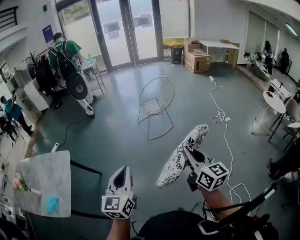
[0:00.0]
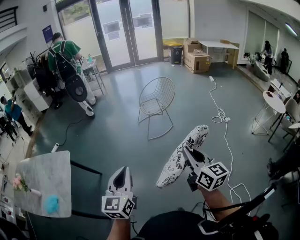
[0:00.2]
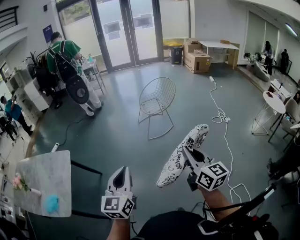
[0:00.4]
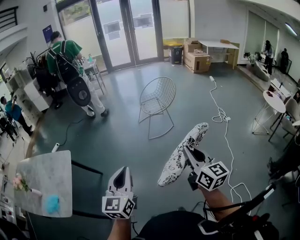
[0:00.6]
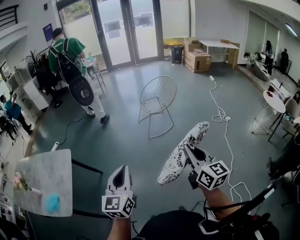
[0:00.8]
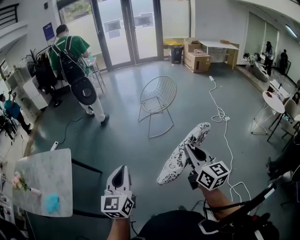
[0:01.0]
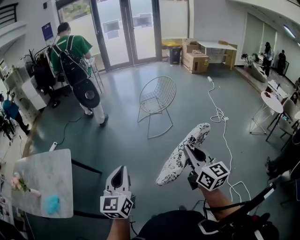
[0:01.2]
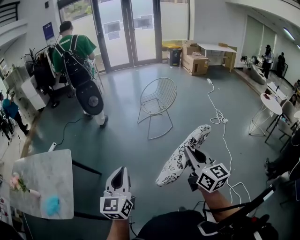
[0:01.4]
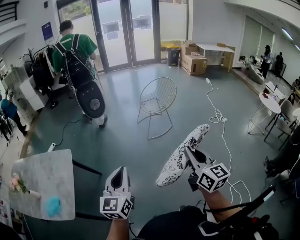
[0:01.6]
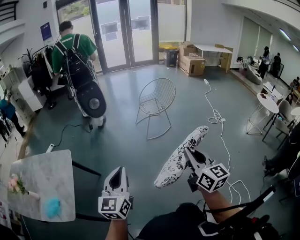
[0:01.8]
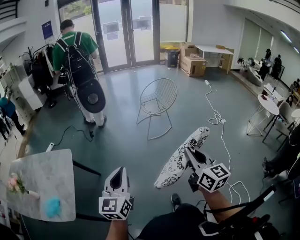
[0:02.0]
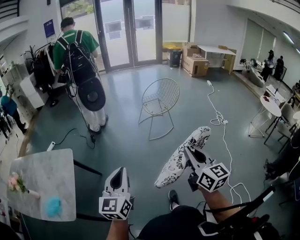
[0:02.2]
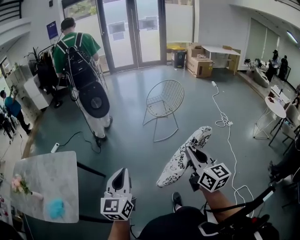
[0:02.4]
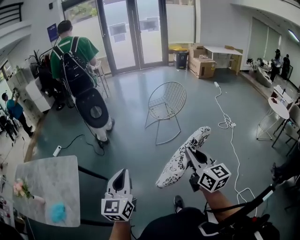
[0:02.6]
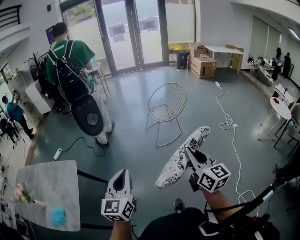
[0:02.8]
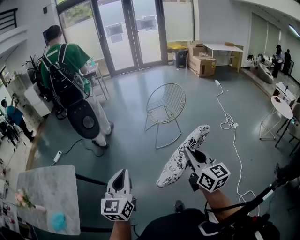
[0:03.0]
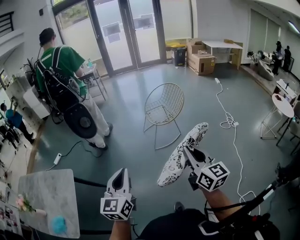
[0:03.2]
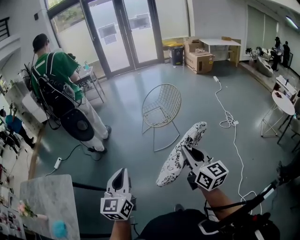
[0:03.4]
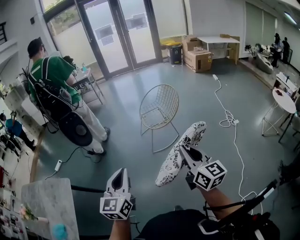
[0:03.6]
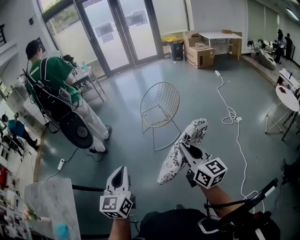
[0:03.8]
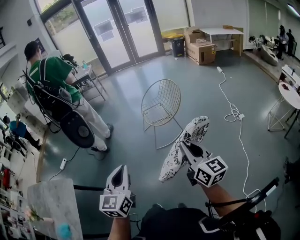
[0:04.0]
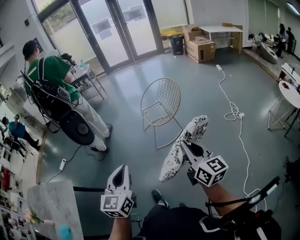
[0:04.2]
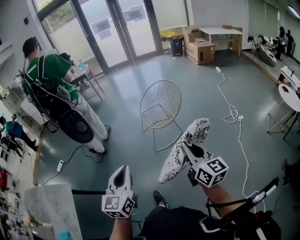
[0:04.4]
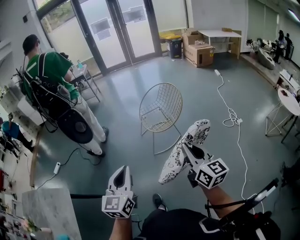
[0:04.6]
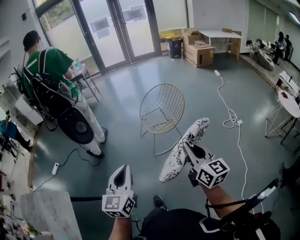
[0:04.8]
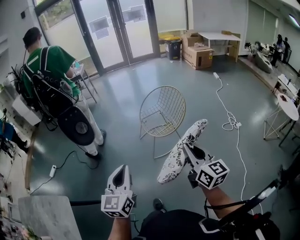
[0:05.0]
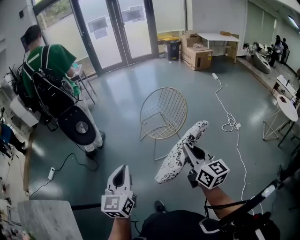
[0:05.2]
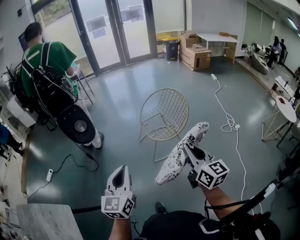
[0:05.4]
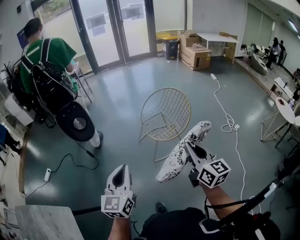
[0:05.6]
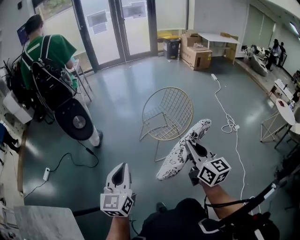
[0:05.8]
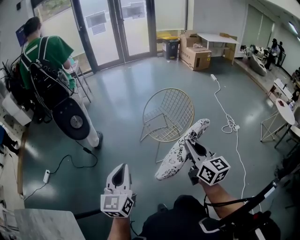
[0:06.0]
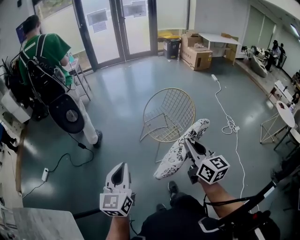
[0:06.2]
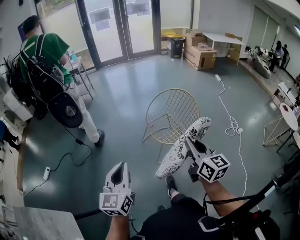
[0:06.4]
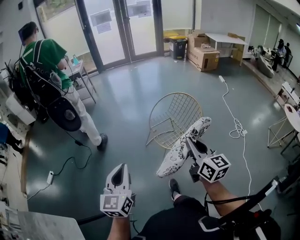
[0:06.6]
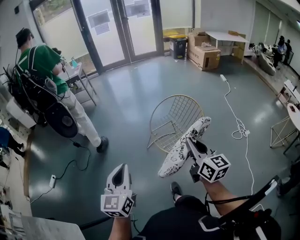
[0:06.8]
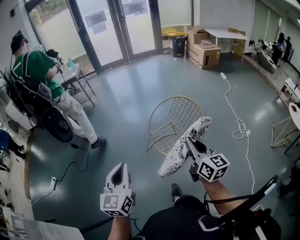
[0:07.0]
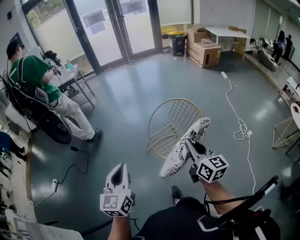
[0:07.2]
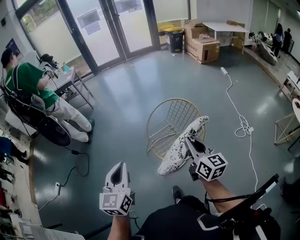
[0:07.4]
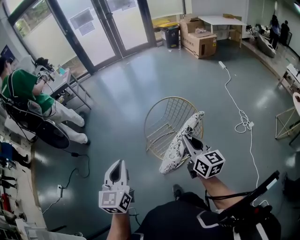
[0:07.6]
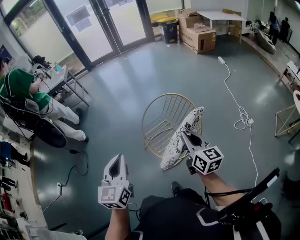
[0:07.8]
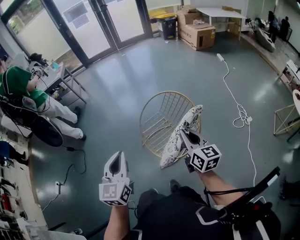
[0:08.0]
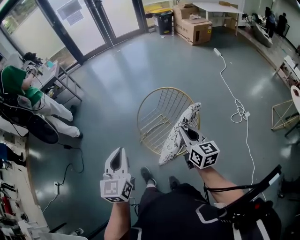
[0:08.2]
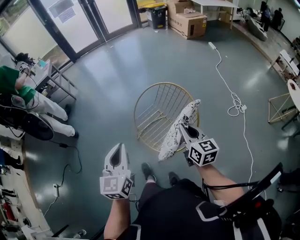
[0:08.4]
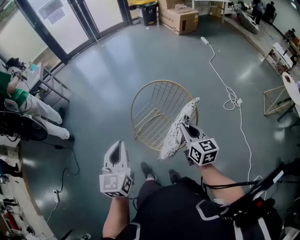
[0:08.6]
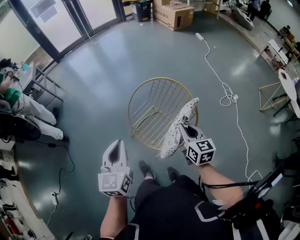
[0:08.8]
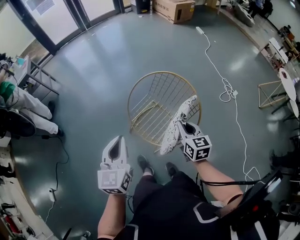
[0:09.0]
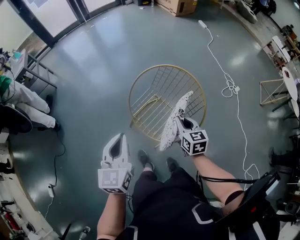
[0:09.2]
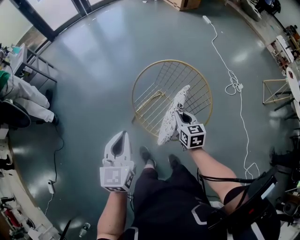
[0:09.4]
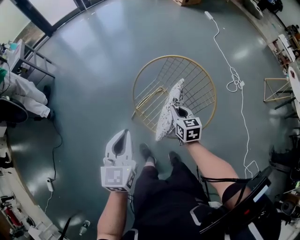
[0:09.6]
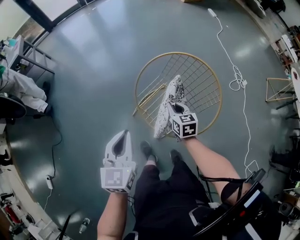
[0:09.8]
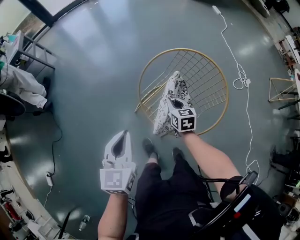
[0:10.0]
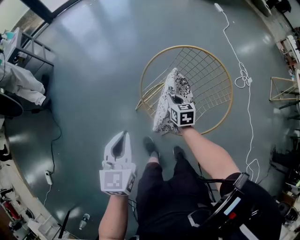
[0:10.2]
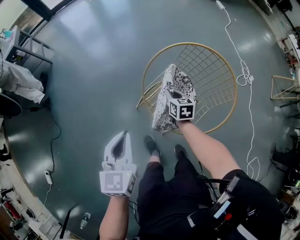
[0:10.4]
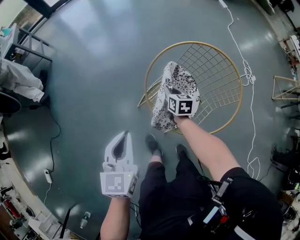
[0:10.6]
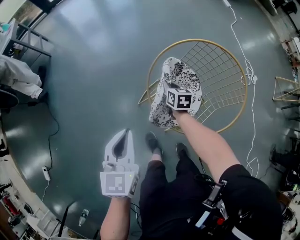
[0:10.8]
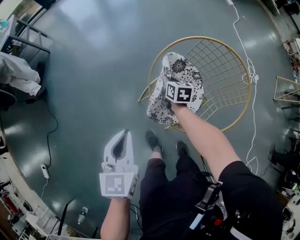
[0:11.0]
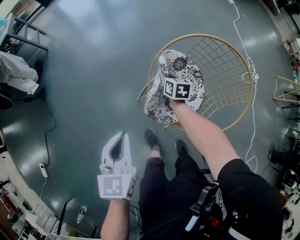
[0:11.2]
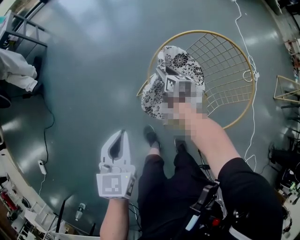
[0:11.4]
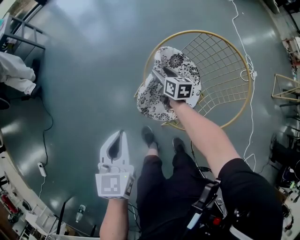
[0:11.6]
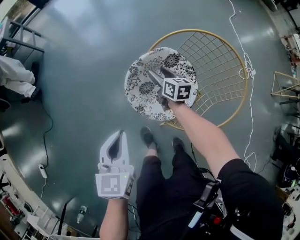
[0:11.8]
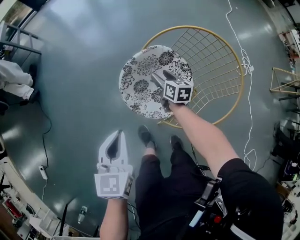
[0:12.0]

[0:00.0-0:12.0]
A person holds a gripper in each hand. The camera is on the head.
0:00.0 to 0:01.6: The grippers both shift to the left by about 10 cm.
0:01.6 to 0:03.0: Both grippers travel together forward, approximately 15 cm.
0:03.0 to 0:04.4: The grippers both shift forward and to the right by roughly 20 cm.
0:04.4 to 0:06.0: The grippers both shift forward and to the left by approximately 25 cm.
0:06.0 to 0:07.6: The grippers both shift forward by about 30 cm.
0:07.6 to 0:09.0: The right gripper heads downward and forward, covering about 20 cm, and changes its angle by roughly 30 degrees. Meanwhile the left gripper heads forward and downward, covering approximately 20 cm.
0:09.0 to 0:10.4: The left gripper shifts about 15 cm downward and to the left, while the right gripper is displaced downward, to the left and forward by some 30 cm.
0:10.4 to 0:12.0: The right gripper shifts some 10 cm downward and forward, and opens up. The left gripper is displaced downward by some 5 cm.

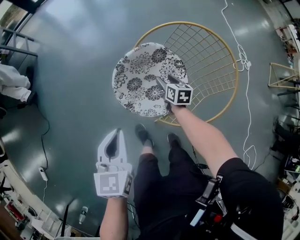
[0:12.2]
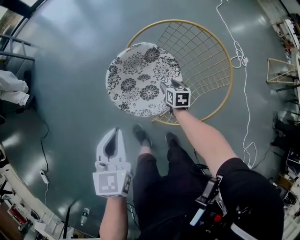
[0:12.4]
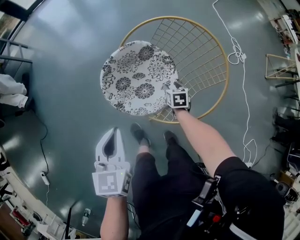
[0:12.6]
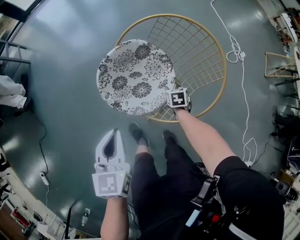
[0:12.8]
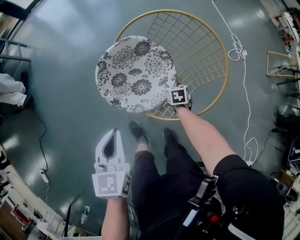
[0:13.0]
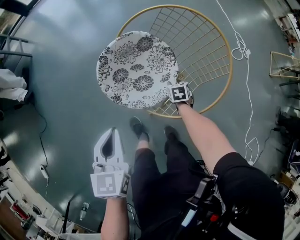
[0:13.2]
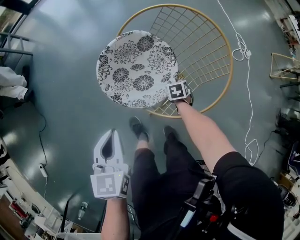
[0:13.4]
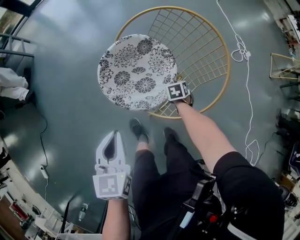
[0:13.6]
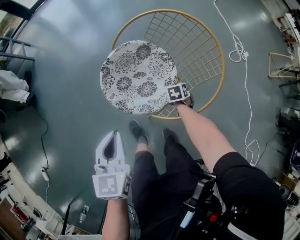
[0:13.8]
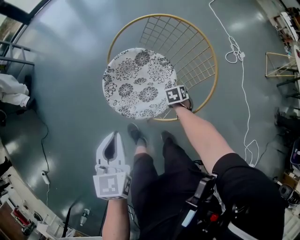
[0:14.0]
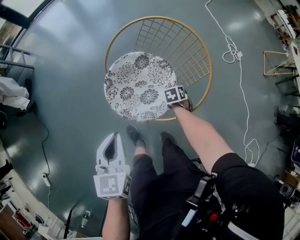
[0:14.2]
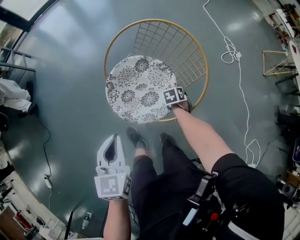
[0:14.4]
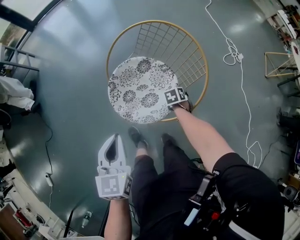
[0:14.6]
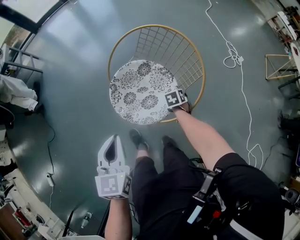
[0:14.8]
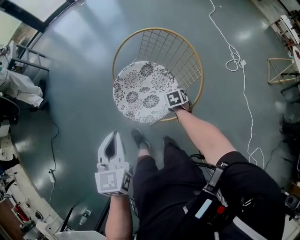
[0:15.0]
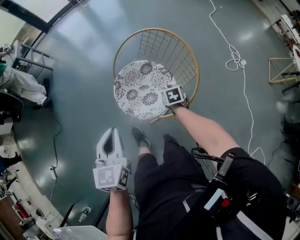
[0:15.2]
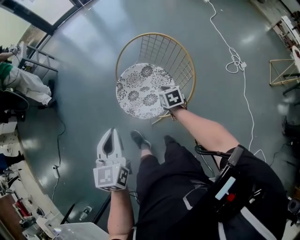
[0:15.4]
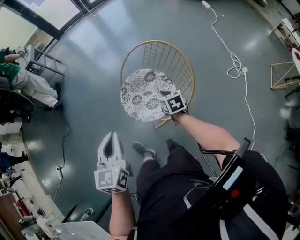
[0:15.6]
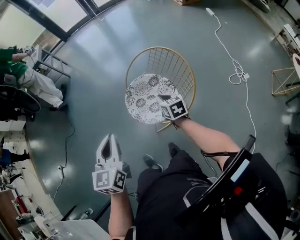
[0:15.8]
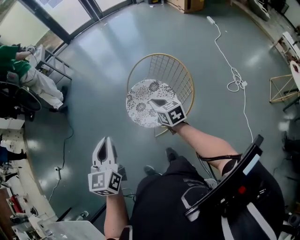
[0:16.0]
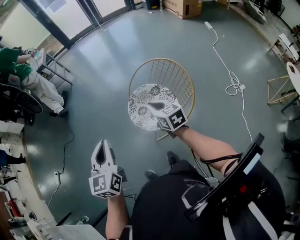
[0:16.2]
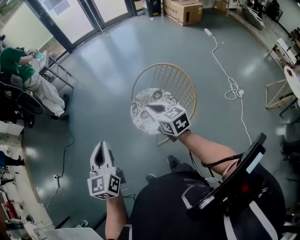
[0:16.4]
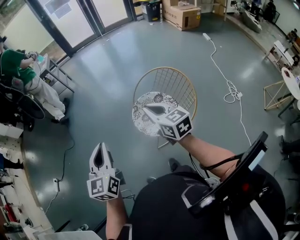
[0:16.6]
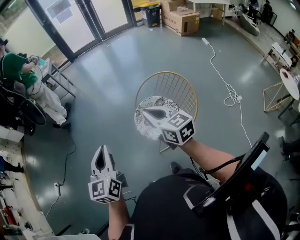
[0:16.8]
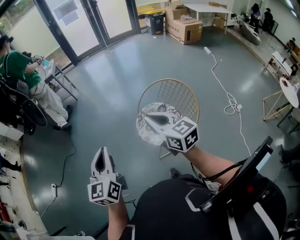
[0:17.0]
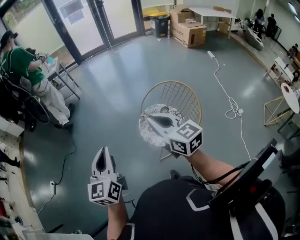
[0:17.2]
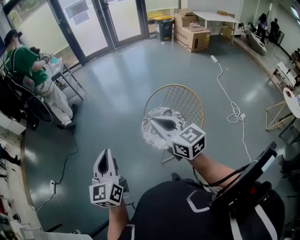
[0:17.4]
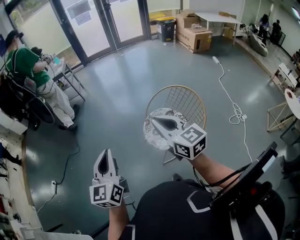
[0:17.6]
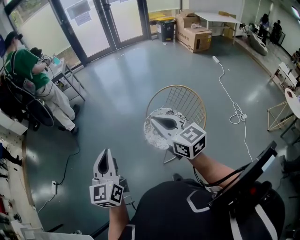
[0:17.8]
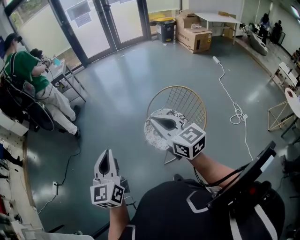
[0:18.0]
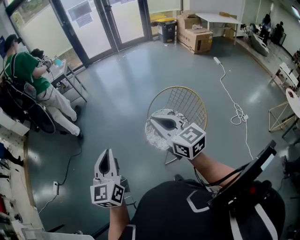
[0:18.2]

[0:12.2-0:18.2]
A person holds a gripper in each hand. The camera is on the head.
0:12.2 to 0:13.8: The right gripper is displaced to the right, downward and backward by approximately 20 cm, turns by roughly 40 degrees, and closes up, while the left gripper shifts roughly 10 cm to the right.
0:13.8 to 0:15.2: The two grippers go some 10 cm upward.
0:15.2 to 0:16.6: The right gripper shifts some 50 cm upward and to the left, and tilts its fingers about 40 degrees upward; the left gripper goes roughly 20 cm upward and to the left.
0:16.6 to 0:18.2: The left gripper shifts some 5 cm upward, while the right gripper is displaced upward and to the left by roughly 10 cm.

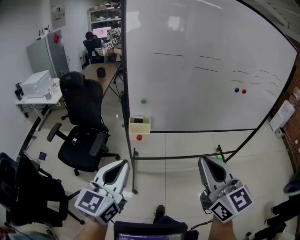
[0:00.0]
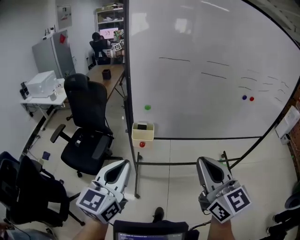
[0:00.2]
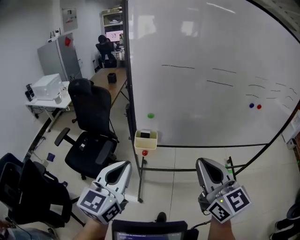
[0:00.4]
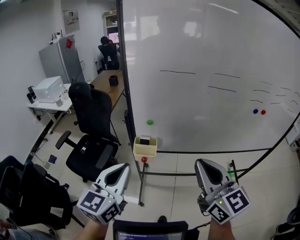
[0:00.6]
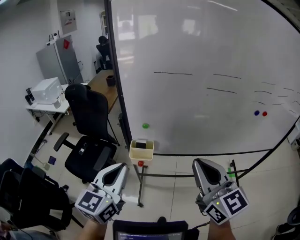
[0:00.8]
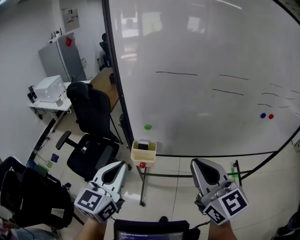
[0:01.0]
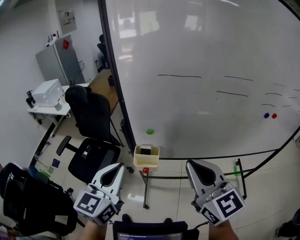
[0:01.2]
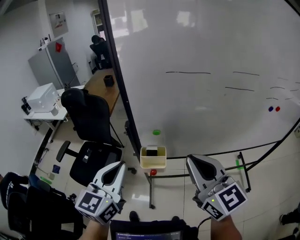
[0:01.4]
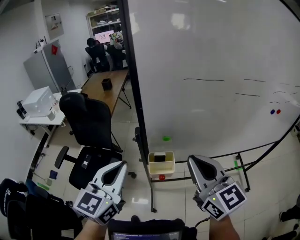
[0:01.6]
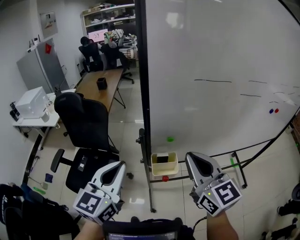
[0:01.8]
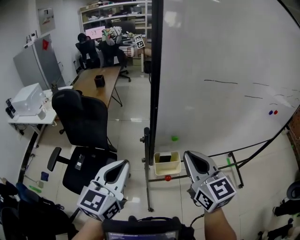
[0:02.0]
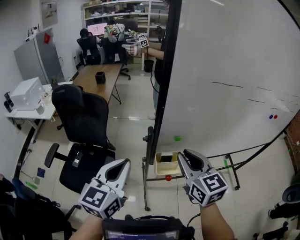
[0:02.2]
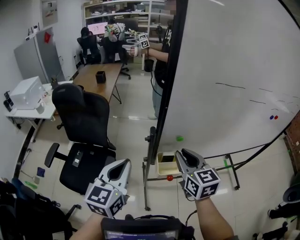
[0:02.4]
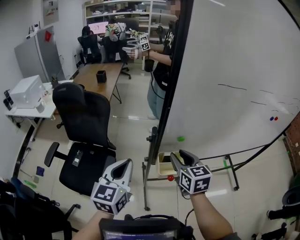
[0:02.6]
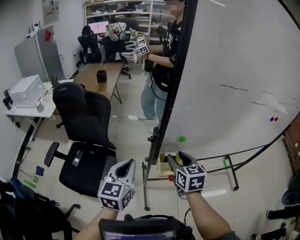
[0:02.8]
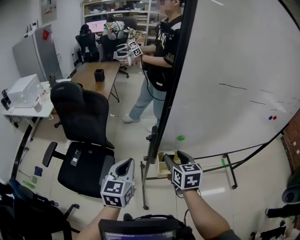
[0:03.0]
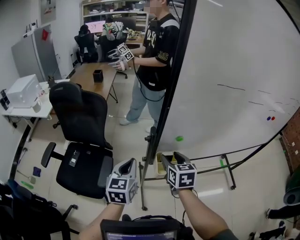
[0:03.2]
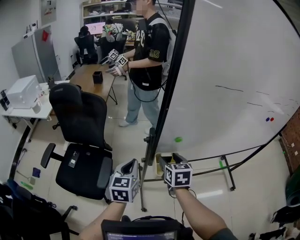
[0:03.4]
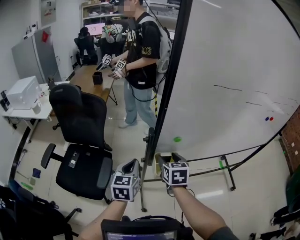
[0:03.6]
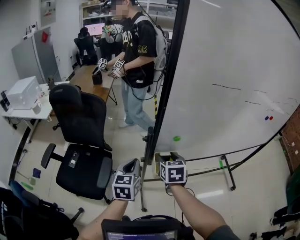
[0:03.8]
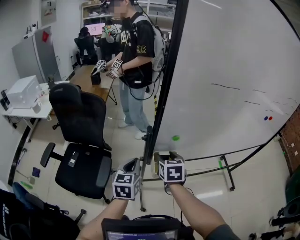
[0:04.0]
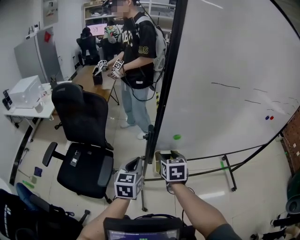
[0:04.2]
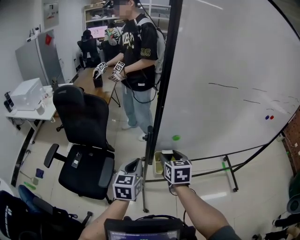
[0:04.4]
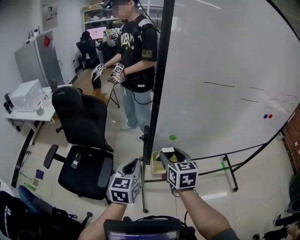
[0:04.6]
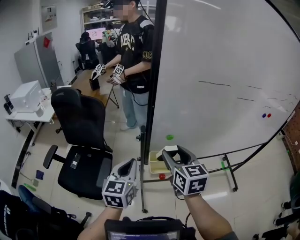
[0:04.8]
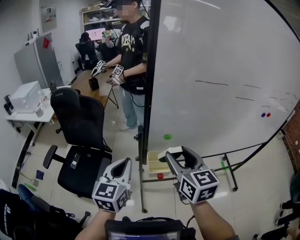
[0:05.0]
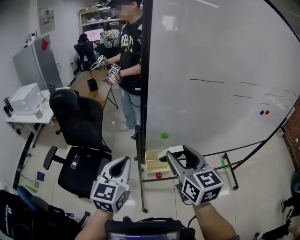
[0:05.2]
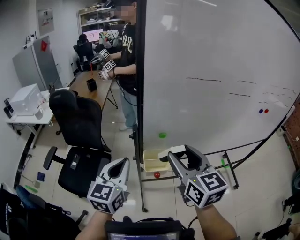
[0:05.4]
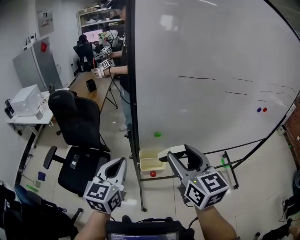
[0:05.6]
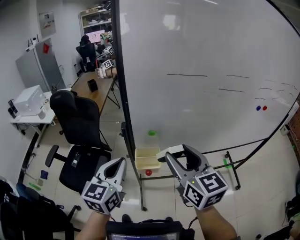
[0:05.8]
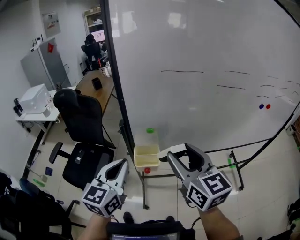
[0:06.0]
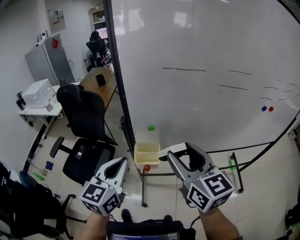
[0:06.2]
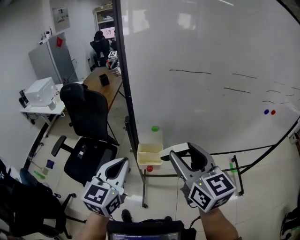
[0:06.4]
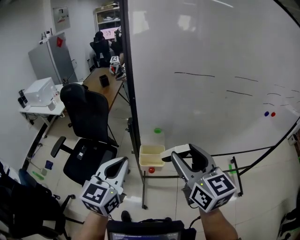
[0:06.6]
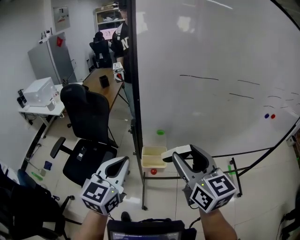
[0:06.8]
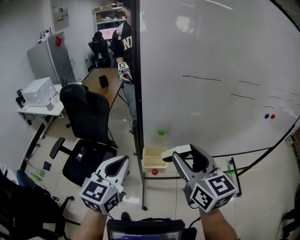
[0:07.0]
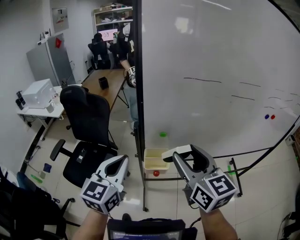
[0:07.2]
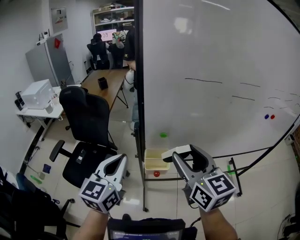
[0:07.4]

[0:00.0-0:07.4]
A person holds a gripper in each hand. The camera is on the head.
0:00.0 to 0:01.4: The two grippers go about 25 cm forward.
0:01.4 to 0:03.0: The grippers both shift downward, to the left and forward by roughly 25 cm. The right gripper angles its fingers downward, by some 30 degrees, and opens its fingers.
0:03.0 to 0:04.4: The left gripper ends up approximately 5 cm from where it was.
0:04.4 to 0:06.0: Both grippers travel together upward, to the right and backward, about 25 cm. The right gripper changes its angle by approximately 30 degrees.
0:06.0 to 0:07.4: Both grippers travel together to the left, approximately 5 cm.
